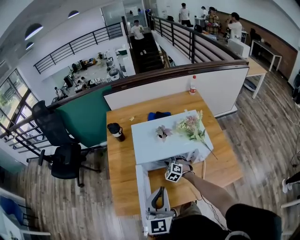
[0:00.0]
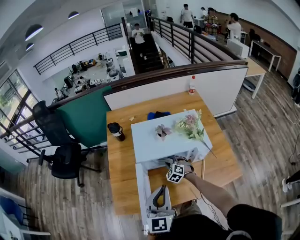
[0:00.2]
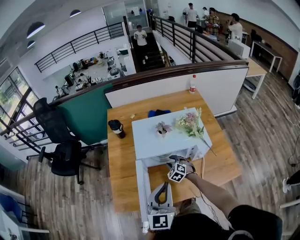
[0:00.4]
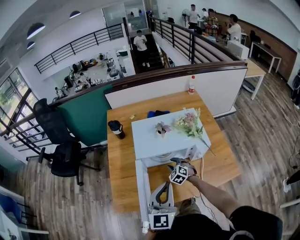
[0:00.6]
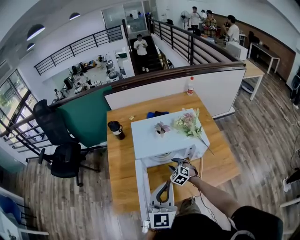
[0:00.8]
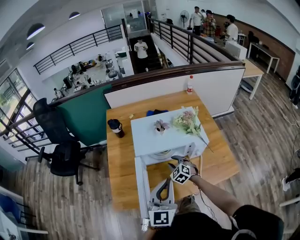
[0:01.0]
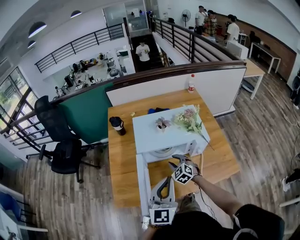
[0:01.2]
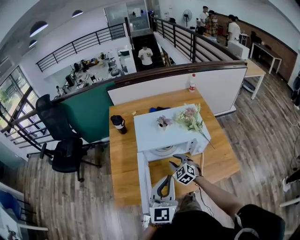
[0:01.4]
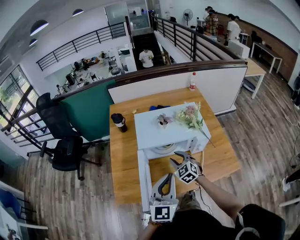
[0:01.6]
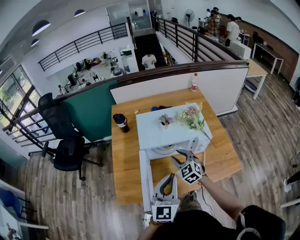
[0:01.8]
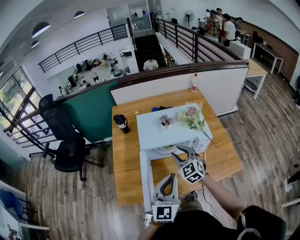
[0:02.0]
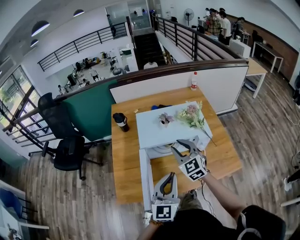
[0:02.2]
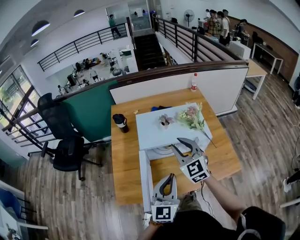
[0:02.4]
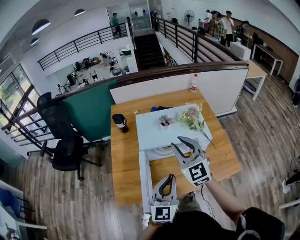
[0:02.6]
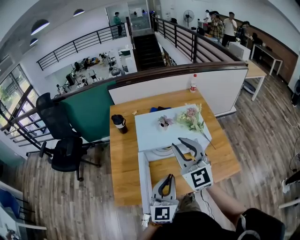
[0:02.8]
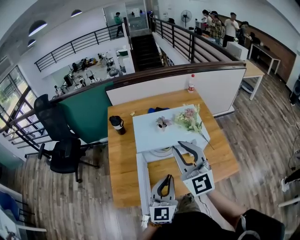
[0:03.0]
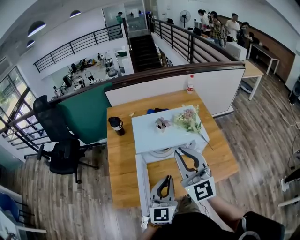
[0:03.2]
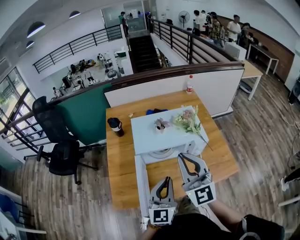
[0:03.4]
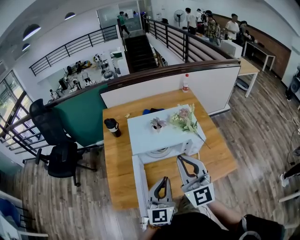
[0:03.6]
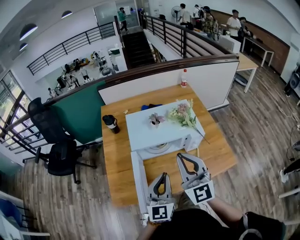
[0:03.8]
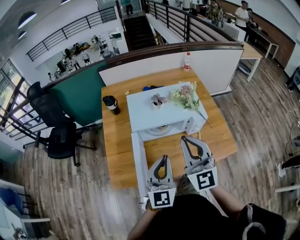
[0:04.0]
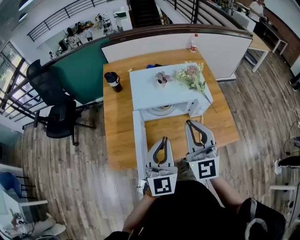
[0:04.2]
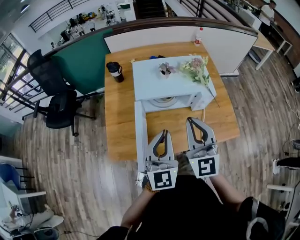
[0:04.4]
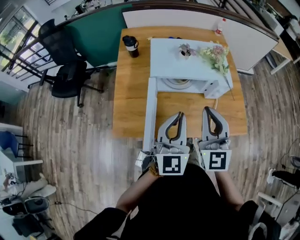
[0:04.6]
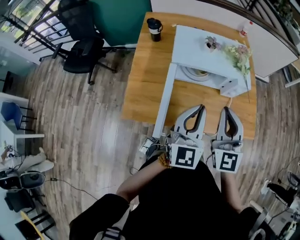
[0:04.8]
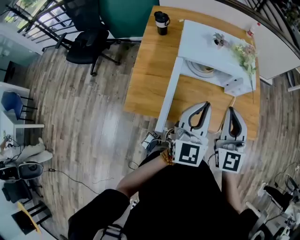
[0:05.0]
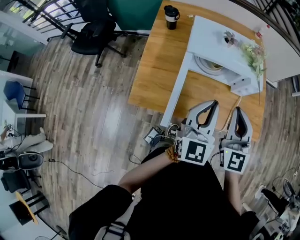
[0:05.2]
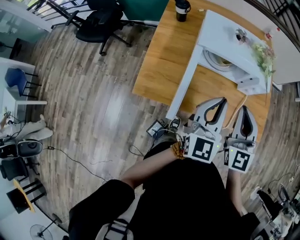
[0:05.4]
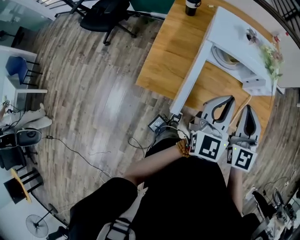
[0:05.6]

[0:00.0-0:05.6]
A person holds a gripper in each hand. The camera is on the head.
0:00.0 to 0:01.4: The right gripper moves backward and upward, approximately 15 cm.
0:01.4 to 0:02.8: The right gripper goes approximately 30 cm upward, and tilts its fingers about 40 degrees upward.
0:02.8 to 0:04.2: The right gripper moves backward, approximately 5 cm, and closes its fingers.
0:04.2 to 0:05.6: The right gripper moves downward, some 10 cm.

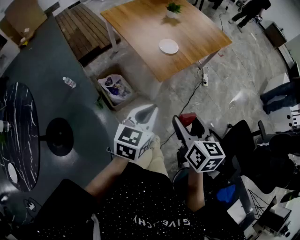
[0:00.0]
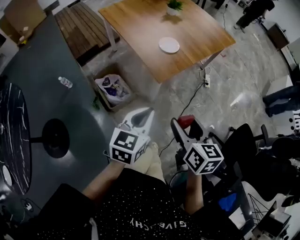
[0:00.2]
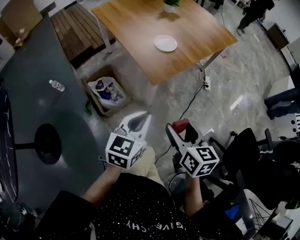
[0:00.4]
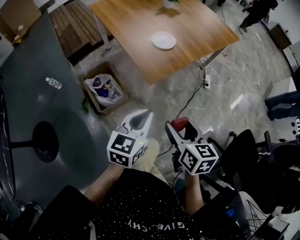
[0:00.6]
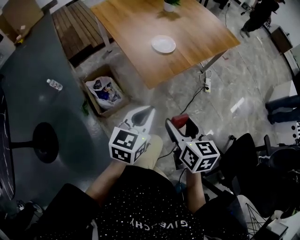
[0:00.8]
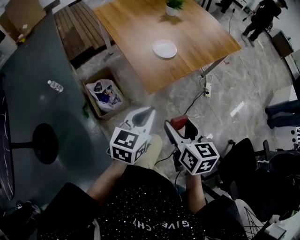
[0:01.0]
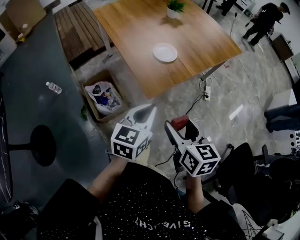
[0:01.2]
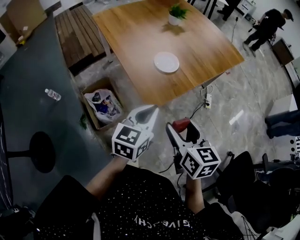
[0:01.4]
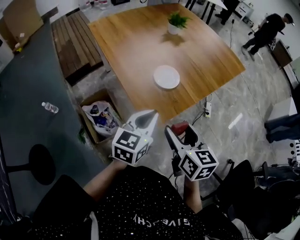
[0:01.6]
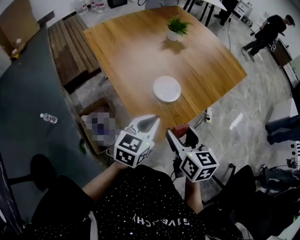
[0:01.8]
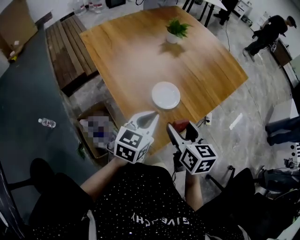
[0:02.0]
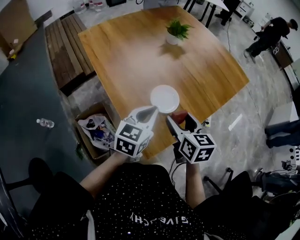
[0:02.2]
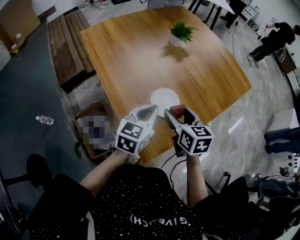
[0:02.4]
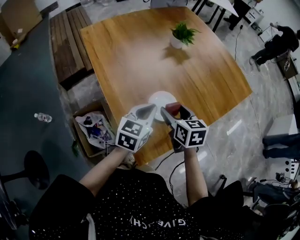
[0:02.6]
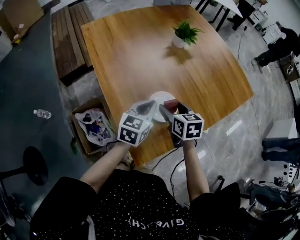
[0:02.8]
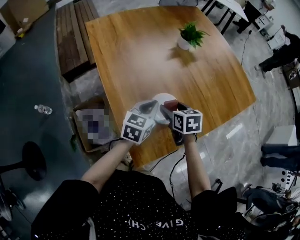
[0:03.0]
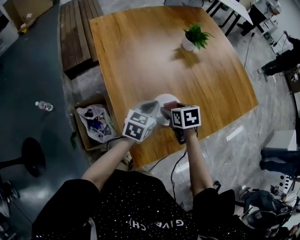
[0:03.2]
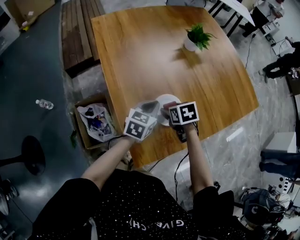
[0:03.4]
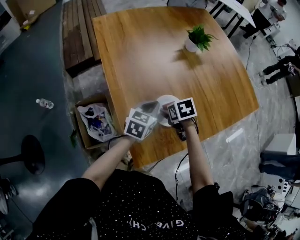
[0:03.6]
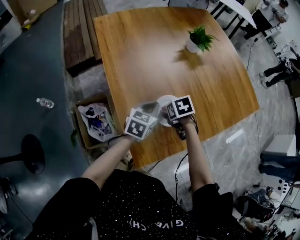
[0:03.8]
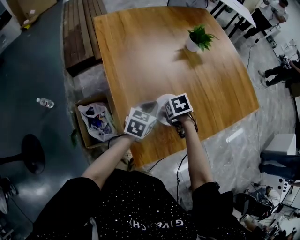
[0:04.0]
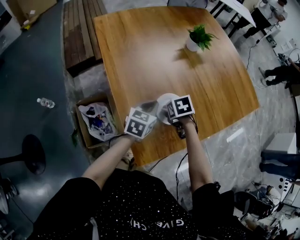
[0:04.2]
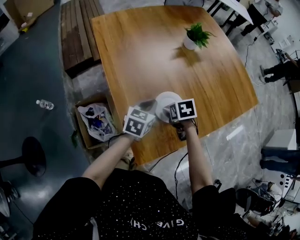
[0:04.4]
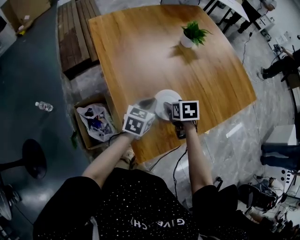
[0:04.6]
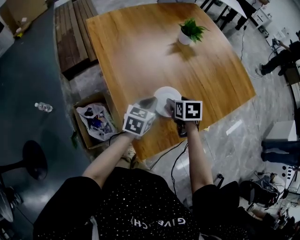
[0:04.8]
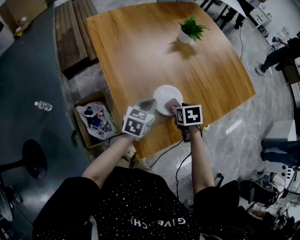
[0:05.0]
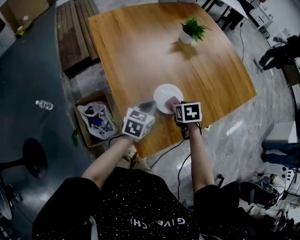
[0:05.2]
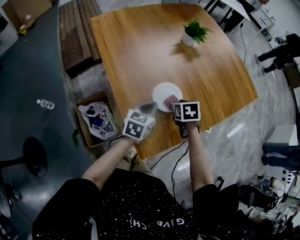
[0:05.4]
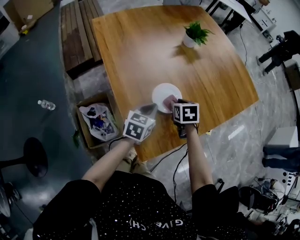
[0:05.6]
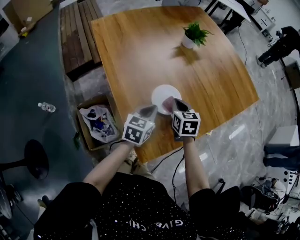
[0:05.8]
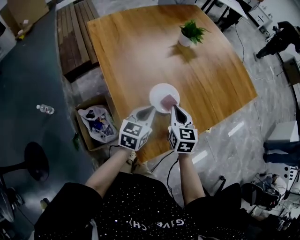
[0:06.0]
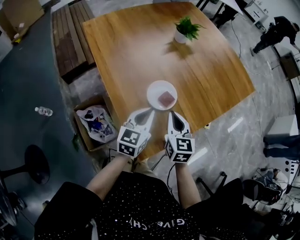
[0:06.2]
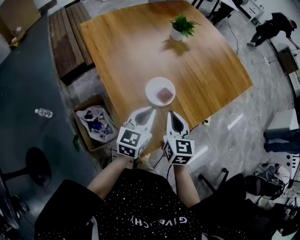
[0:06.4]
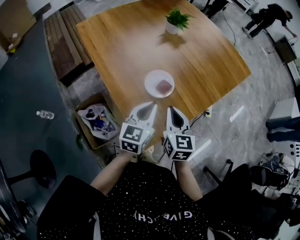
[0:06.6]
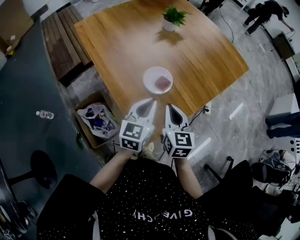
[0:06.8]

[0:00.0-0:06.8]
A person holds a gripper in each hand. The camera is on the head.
0:00.0 to 0:01.4: Both grippers travel together forward and downward, some 25 cm.
0:01.4 to 0:02.8: Both grippers travel together forward, about 35 cm.
0:02.8 to 0:04.0: The right gripper moves downward, approximately 10 cm, and tilts its fingers approximately 40 degrees downward. Meanwhile the left gripper moves downward, approximately 5 cm.
0:04.0 to 0:05.4: The right gripper ends up about 5 cm from where it was, turns by some 20 degrees, and closes up.
0:05.4 to 0:06.8: The right gripper shifts roughly 15 cm backward and upward, points its fingers approximately 40 degrees further upward, and closes up. The left gripper heads upward and backward, covering about 10 cm.

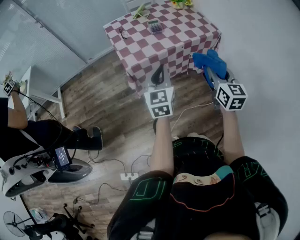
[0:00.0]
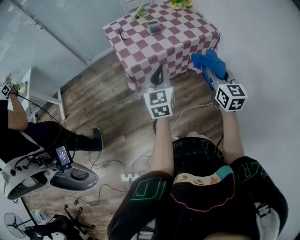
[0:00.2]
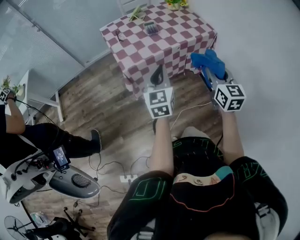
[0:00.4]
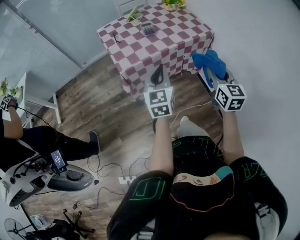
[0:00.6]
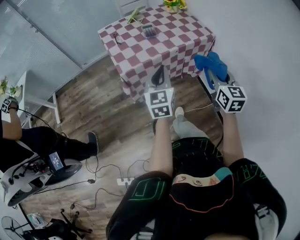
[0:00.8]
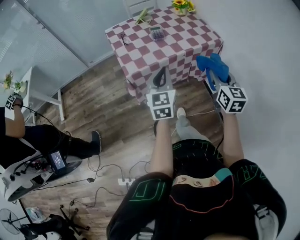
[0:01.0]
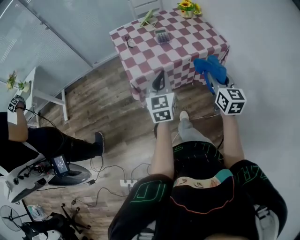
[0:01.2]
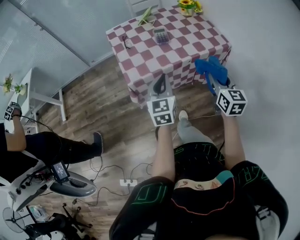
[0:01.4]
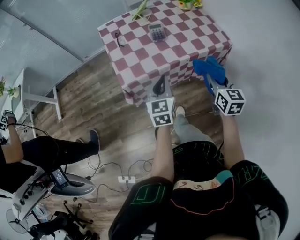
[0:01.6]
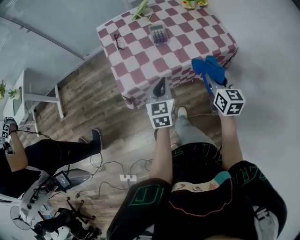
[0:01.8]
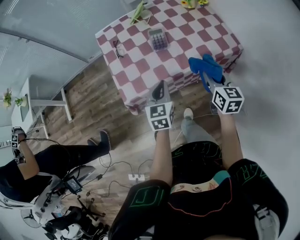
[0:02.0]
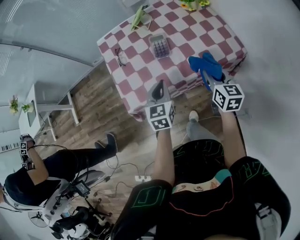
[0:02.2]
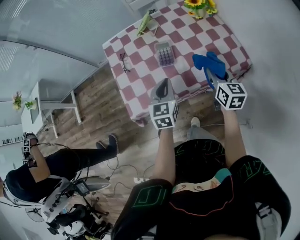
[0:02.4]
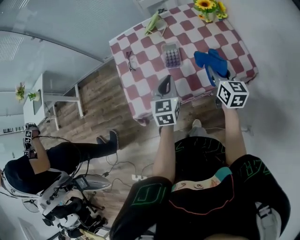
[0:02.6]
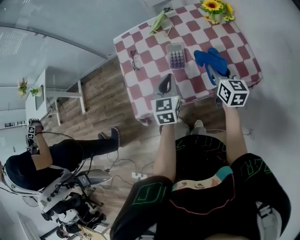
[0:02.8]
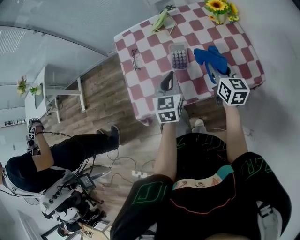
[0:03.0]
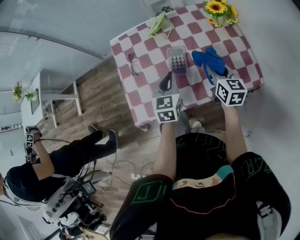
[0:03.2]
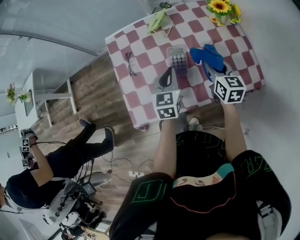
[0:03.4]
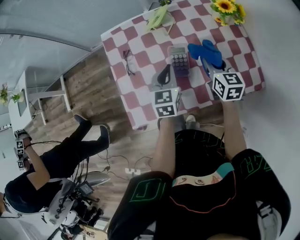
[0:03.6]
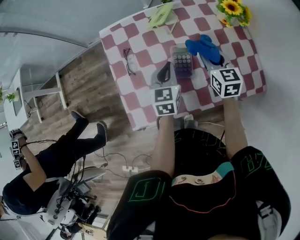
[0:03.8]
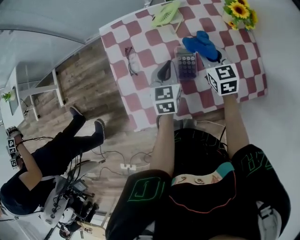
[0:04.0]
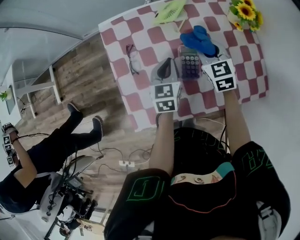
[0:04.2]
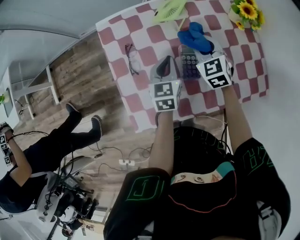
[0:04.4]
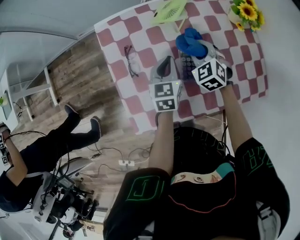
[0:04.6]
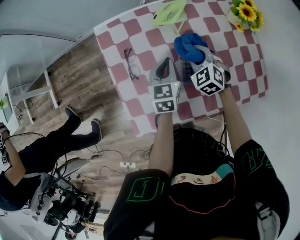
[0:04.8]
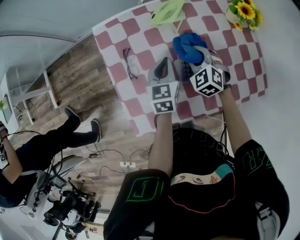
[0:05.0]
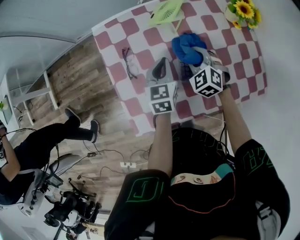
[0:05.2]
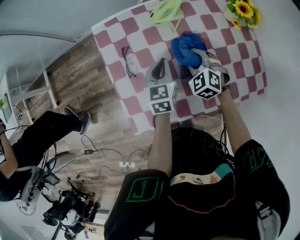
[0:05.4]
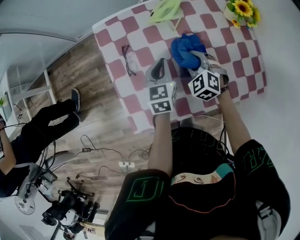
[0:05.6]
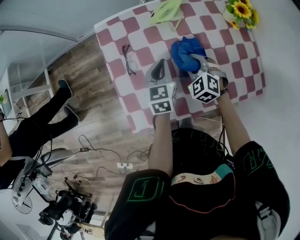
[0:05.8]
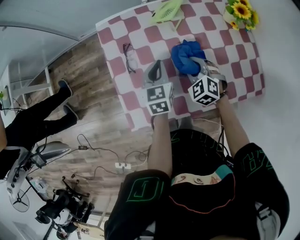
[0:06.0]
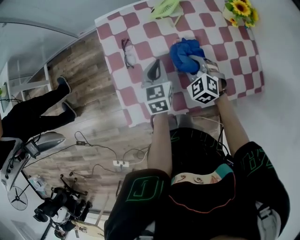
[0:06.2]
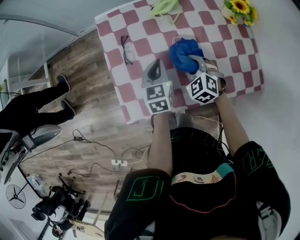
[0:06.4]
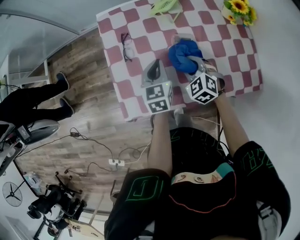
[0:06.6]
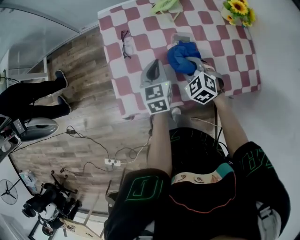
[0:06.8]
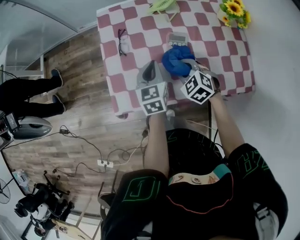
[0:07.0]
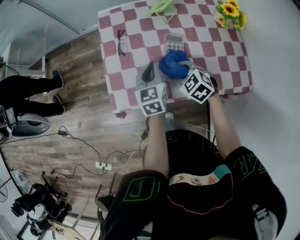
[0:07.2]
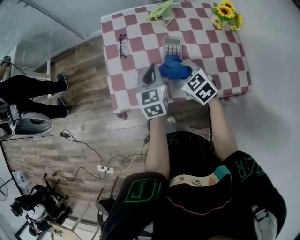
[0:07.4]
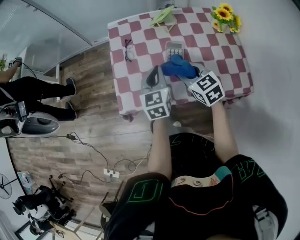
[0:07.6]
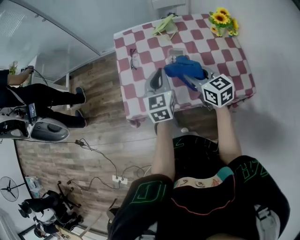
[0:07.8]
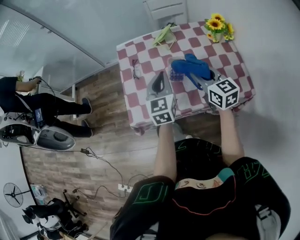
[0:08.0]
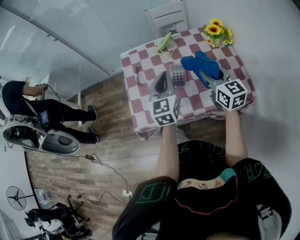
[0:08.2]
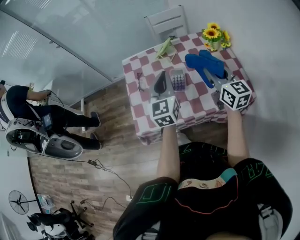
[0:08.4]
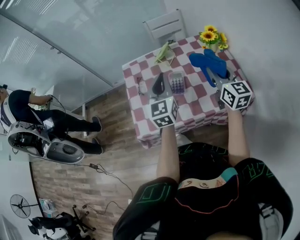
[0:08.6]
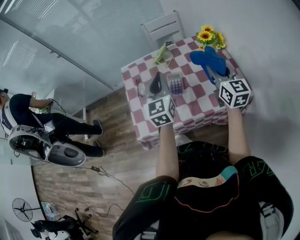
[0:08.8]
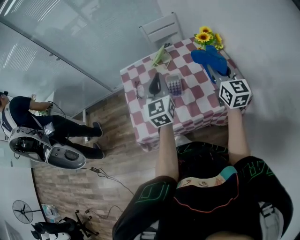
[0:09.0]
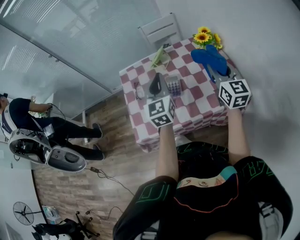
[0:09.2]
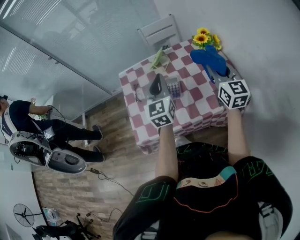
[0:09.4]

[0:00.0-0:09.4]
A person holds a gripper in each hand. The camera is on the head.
0:00.0 to 0:01.6: Both grippers travel together forward and downward, about 15 cm.
0:01.6 to 0:03.2: Both grippers move forward, some 30 cm.
0:03.2 to 0:04.8: The left gripper travels forward, downward and to the left by roughly 15 cm. The right gripper heads to the left, forward and downward, covering some 20 cm, and rolls counterclockwise, seen from behind, by roughly 50 degrees.
0:04.8 to 0:06.2: The right gripper heads backward, covering approximately 10 cm. The left gripper shifts by about 5 cm.
0:06.2 to 0:07.8: Both grippers travel together upward and backward, some 15 cm. The right gripper rotates about 50 degrees.
0:07.8 to 0:09.4: The left gripper heads upward and to the right, covering approximately 15 cm; the right gripper travels to the right and upward by about 20 cm, and rotates about 40 degrees.

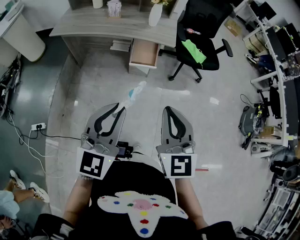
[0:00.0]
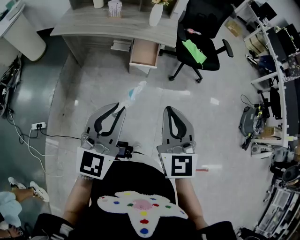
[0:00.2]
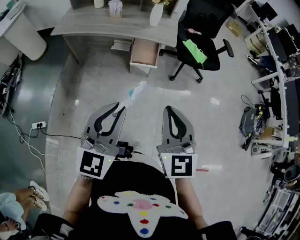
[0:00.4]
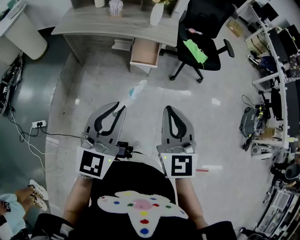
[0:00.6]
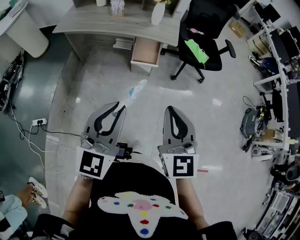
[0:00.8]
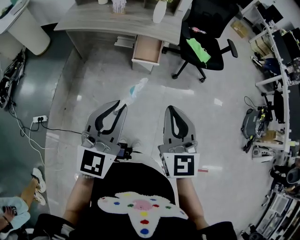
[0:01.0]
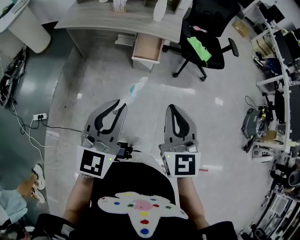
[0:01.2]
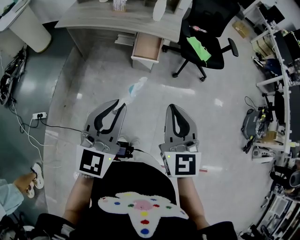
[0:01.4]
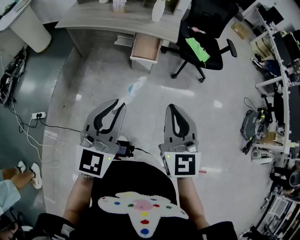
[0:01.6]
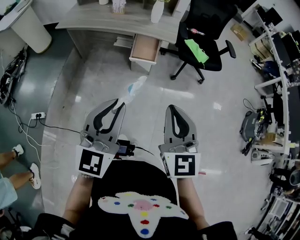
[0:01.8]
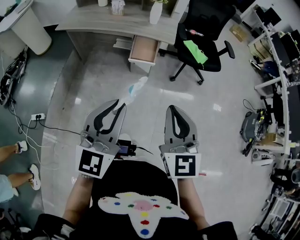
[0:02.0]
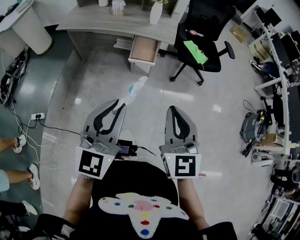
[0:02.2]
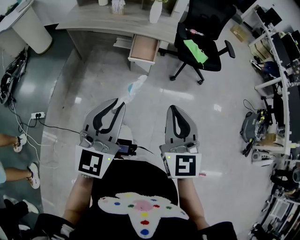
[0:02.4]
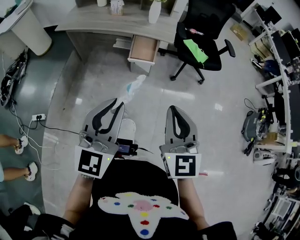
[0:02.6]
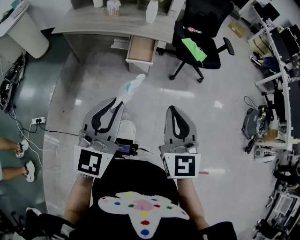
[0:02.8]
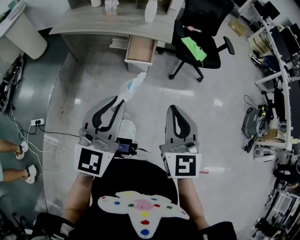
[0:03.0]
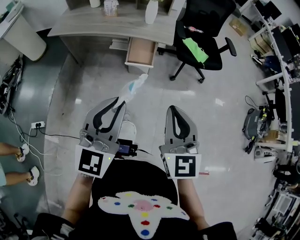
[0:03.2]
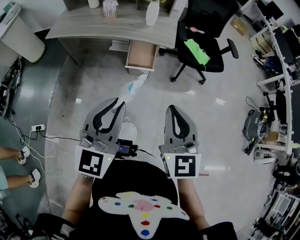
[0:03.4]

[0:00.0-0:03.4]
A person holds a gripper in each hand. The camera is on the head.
0:00.0 to 0:01.6: The right gripper travels to the right by some 5 cm, while the left gripper moves some 5 cm.
0:01.6 to 0:03.4: Both grippers travel together forward, approximately 10 cm.
